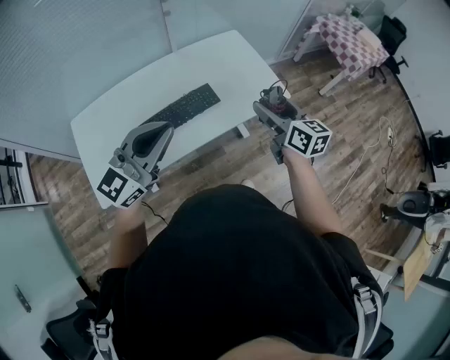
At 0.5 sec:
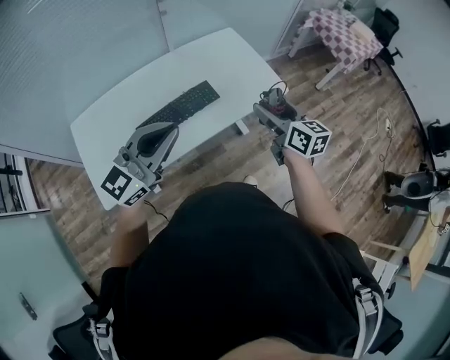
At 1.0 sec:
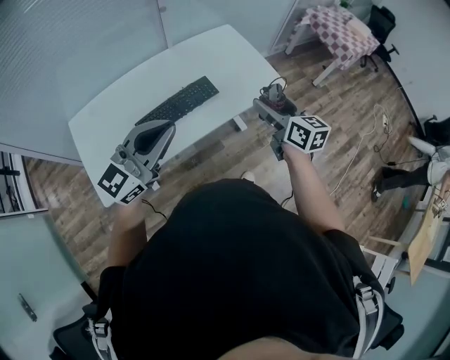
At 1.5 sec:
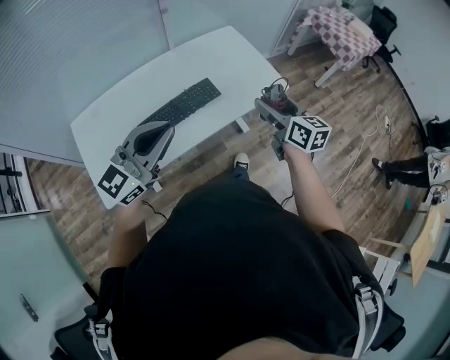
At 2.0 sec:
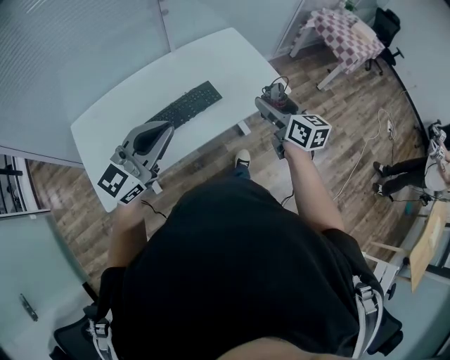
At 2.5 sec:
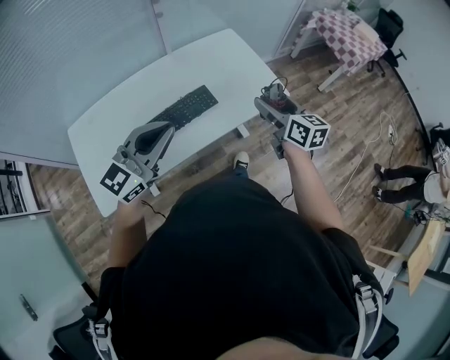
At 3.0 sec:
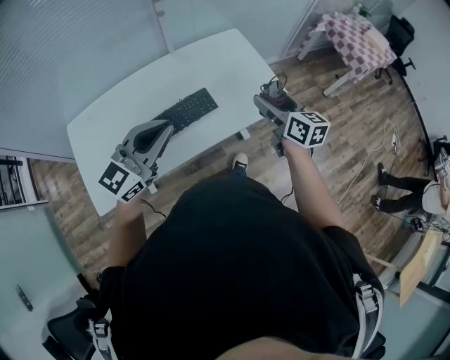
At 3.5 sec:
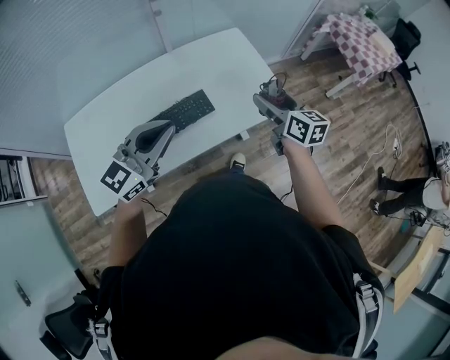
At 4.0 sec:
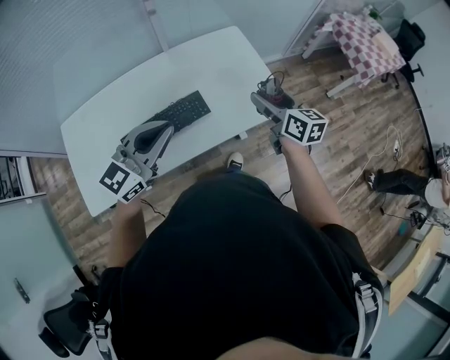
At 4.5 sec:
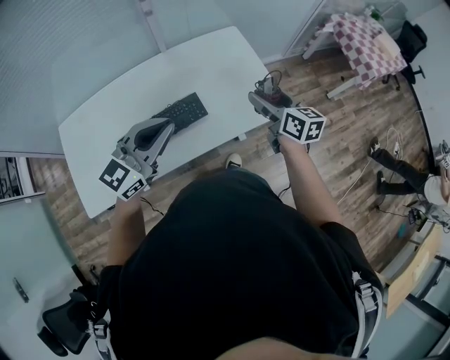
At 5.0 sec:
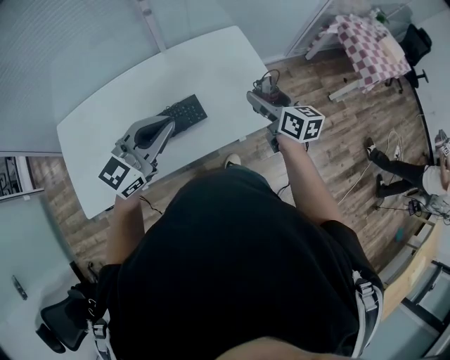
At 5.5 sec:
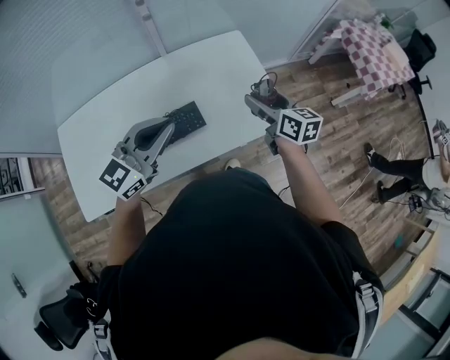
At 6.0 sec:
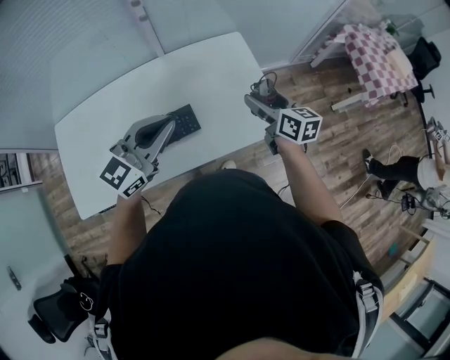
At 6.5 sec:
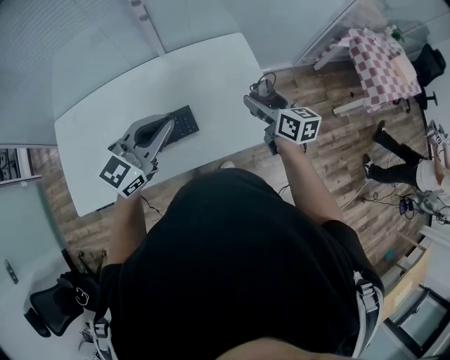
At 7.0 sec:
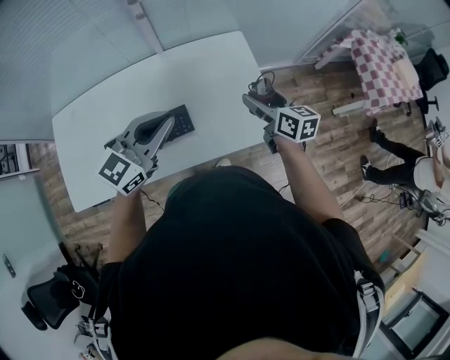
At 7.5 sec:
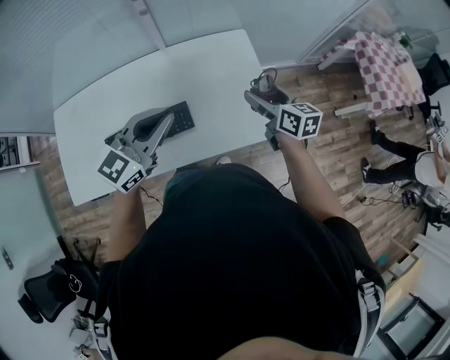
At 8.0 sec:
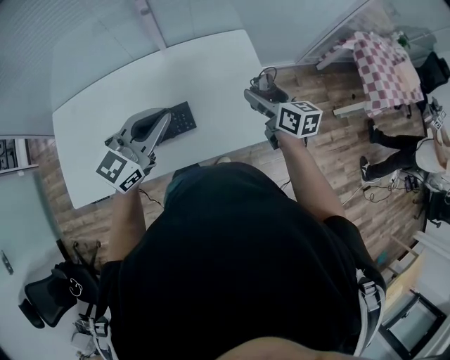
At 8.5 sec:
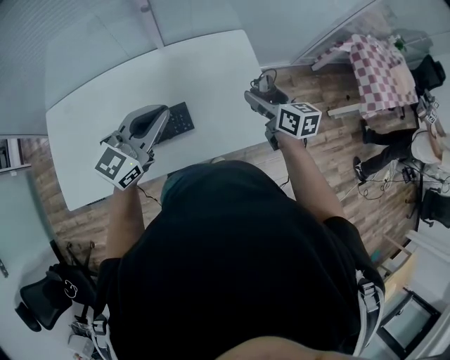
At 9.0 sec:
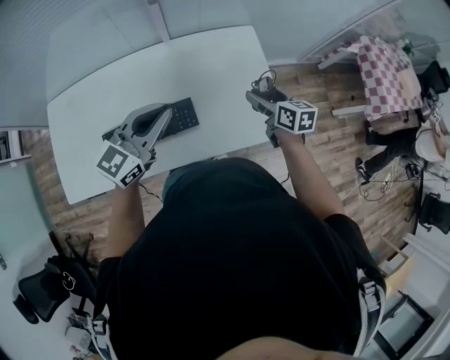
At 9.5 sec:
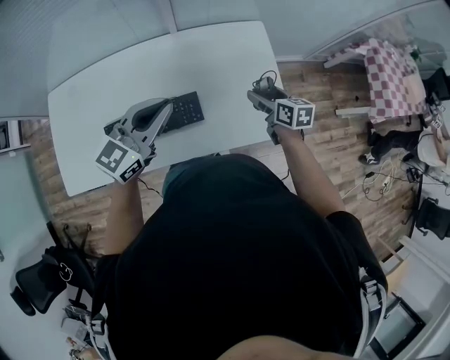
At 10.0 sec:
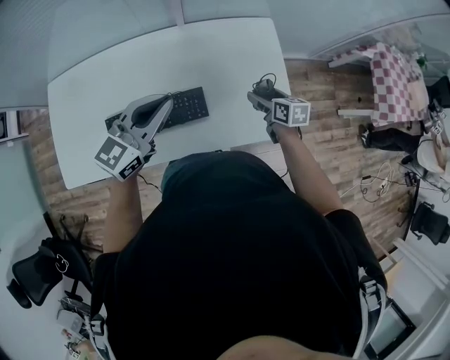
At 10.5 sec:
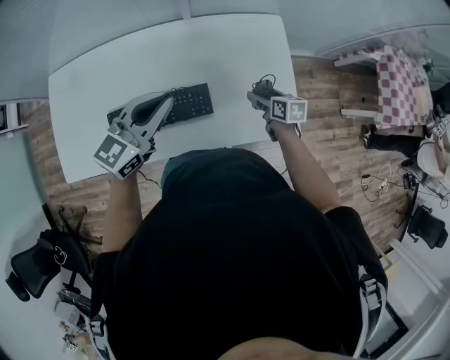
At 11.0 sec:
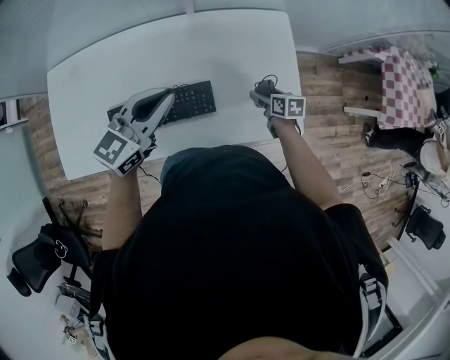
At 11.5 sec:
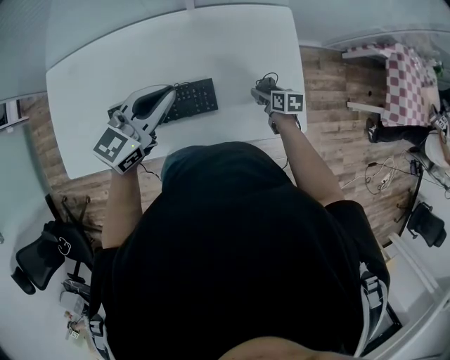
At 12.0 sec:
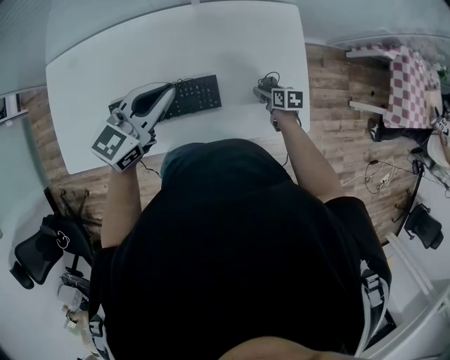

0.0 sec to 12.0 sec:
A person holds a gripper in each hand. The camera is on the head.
0.0 sec to 2.0 sec: The grippers stay close to where they were, moving slightly.
2.0 sec to 4.0 sec: The right gripper is displaced forward by some 20 cm. Meanwhile the left gripper is displaced forward and to the right by some 20 cm.
4.0 sec to 6.0 sec: The left gripper moves forward and to the right, roughly 15 cm; the right gripper is displaced forward by roughly 15 cm.
6.0 sec to 8.0 sec: The grippers stay close to where they were, moving slightly.
8.0 sec to 10.0 sec: The right gripper heads downward, covering roughly 15 cm, and swivels approximately 20 degrees. The left gripper is displaced to the left and downward by approximately 10 cm.
10.0 sec to 12.0 sec: The left gripper travels forward by about 5 cm; the right gripper shifts some 15 cm downward.

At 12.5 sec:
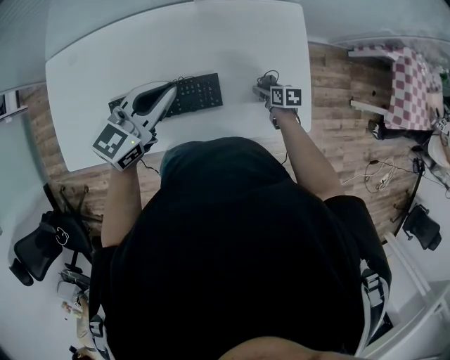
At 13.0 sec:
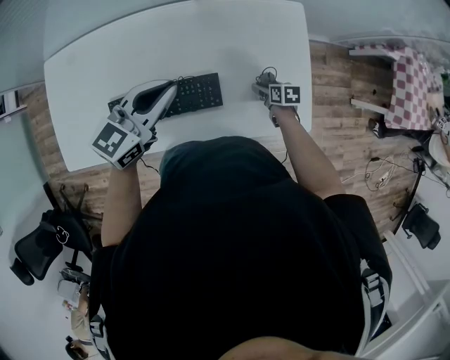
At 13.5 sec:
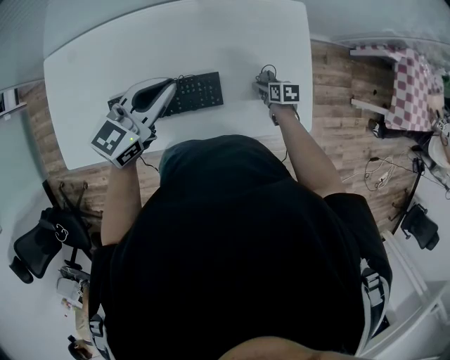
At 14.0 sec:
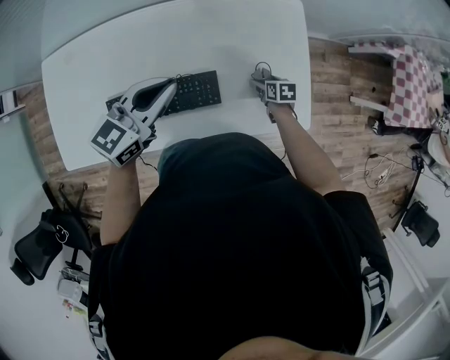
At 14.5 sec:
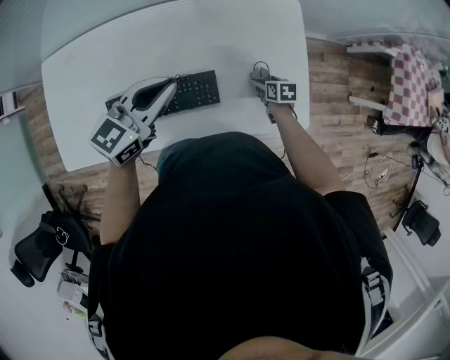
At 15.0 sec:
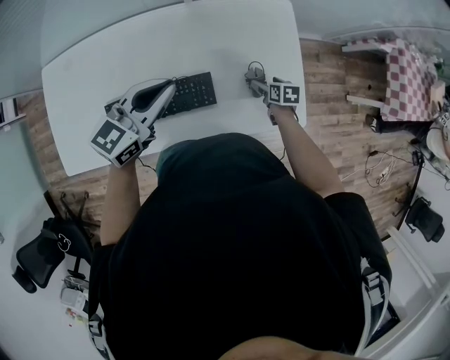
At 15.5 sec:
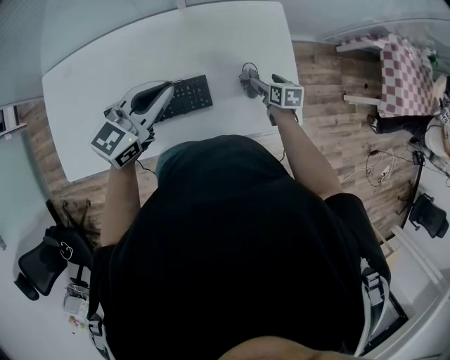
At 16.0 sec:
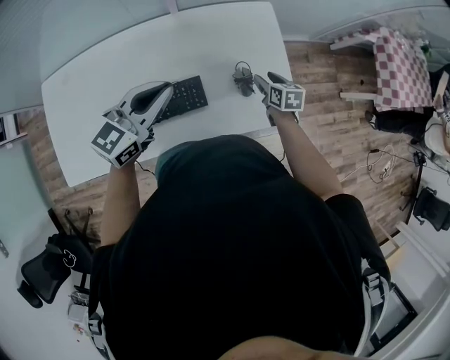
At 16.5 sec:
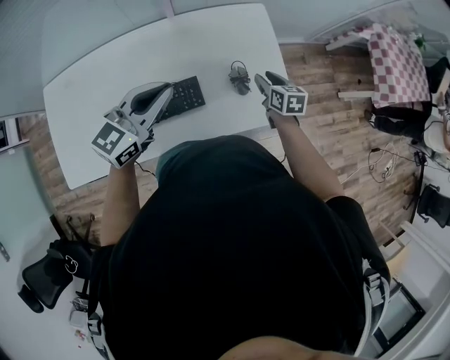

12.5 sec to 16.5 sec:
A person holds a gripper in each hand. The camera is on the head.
12.5 sec to 14.5 sec: There are only small adjustments of the grippers.
14.5 sec to 16.5 sec: The left gripper moves backward, to the right and upward, approximately 10 cm; the right gripper heads upward, covering some 15 cm, changes its angle by approximately 20 degrees, and closes up.

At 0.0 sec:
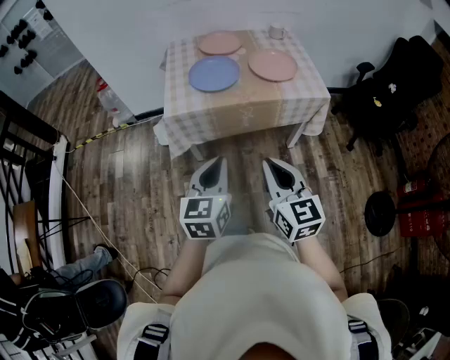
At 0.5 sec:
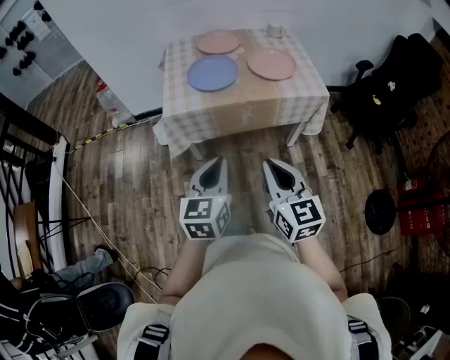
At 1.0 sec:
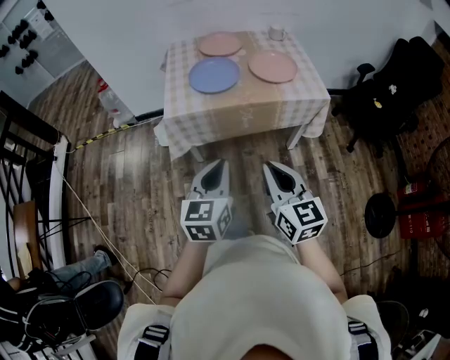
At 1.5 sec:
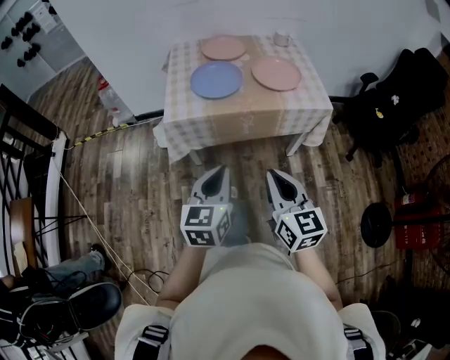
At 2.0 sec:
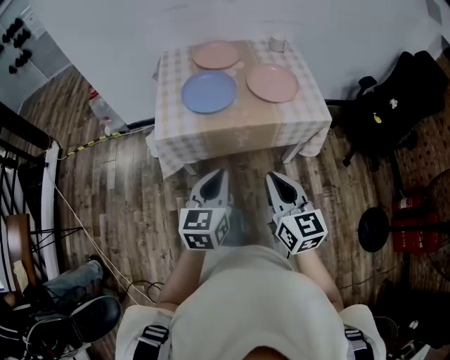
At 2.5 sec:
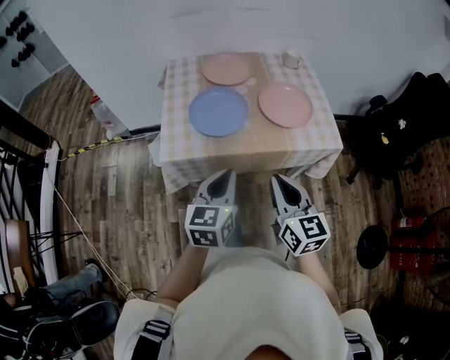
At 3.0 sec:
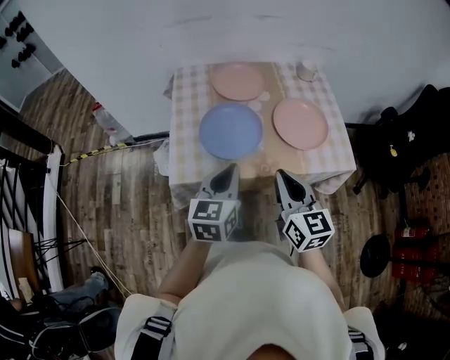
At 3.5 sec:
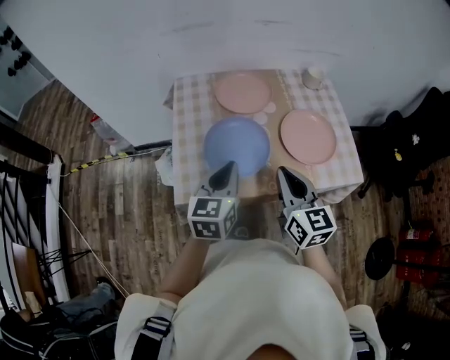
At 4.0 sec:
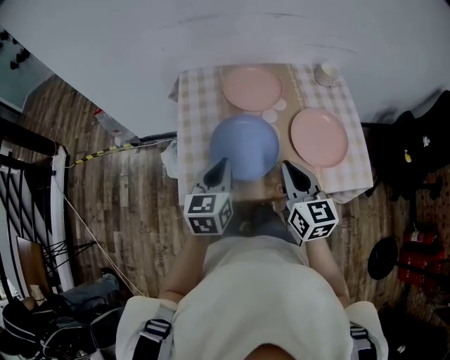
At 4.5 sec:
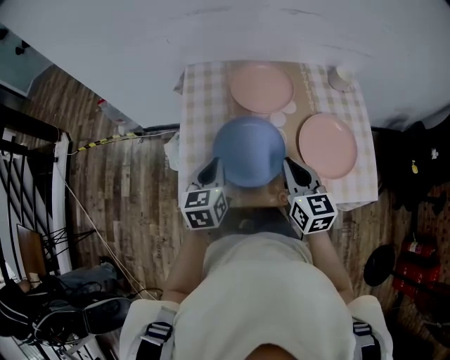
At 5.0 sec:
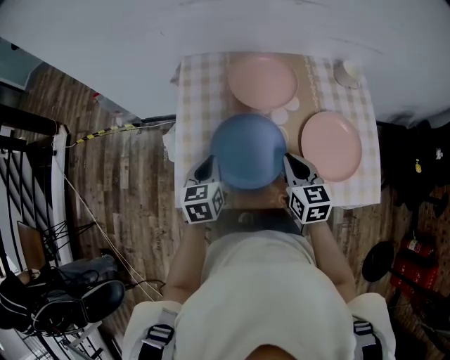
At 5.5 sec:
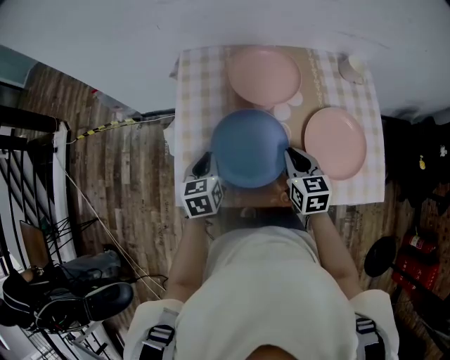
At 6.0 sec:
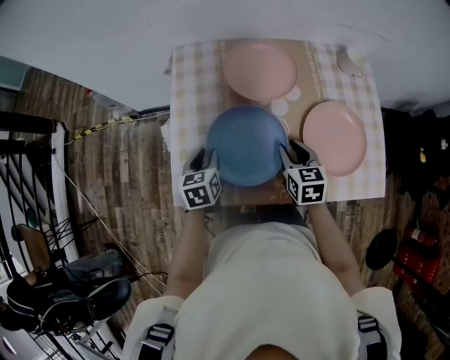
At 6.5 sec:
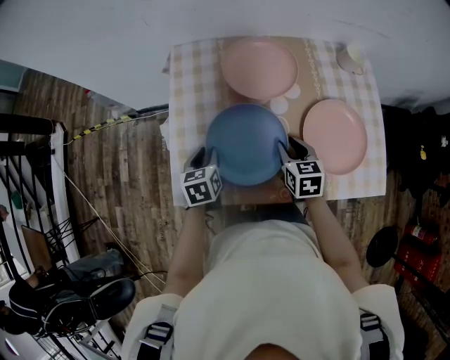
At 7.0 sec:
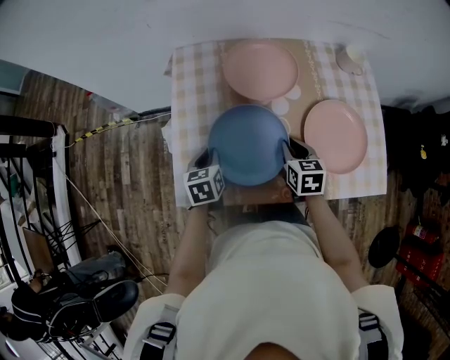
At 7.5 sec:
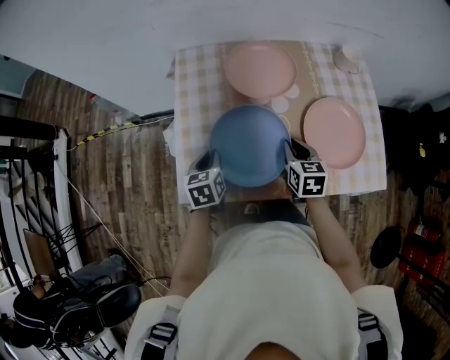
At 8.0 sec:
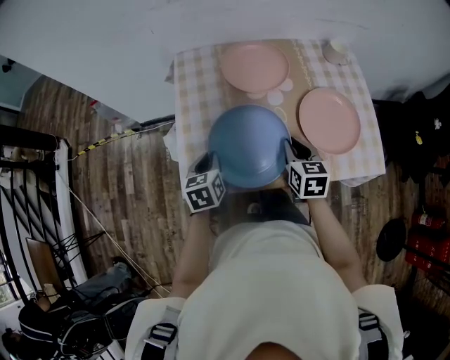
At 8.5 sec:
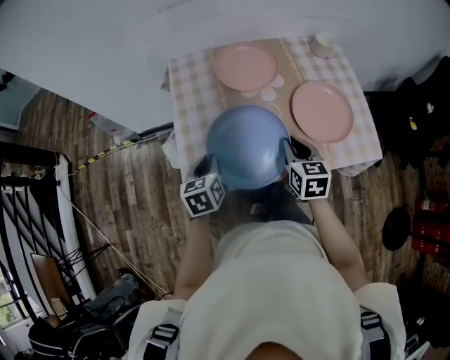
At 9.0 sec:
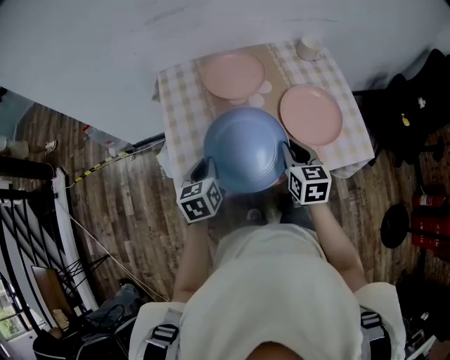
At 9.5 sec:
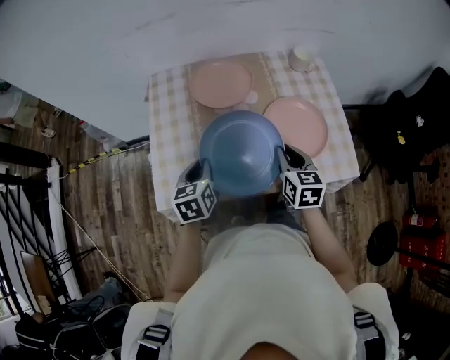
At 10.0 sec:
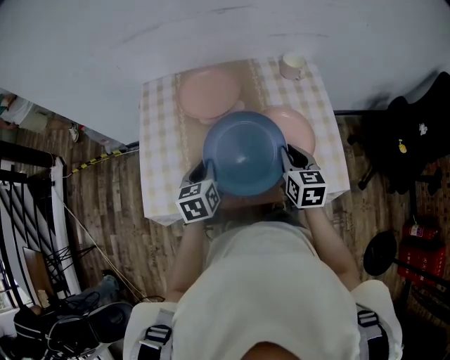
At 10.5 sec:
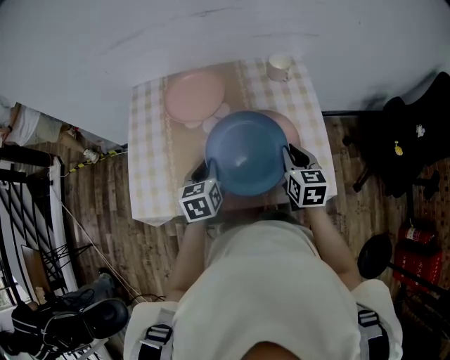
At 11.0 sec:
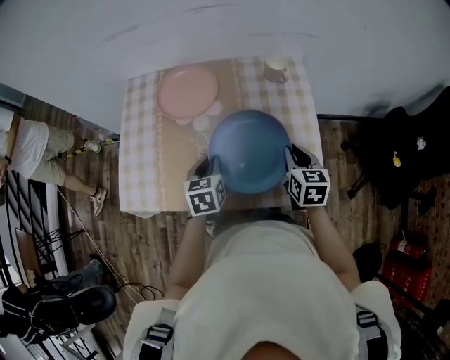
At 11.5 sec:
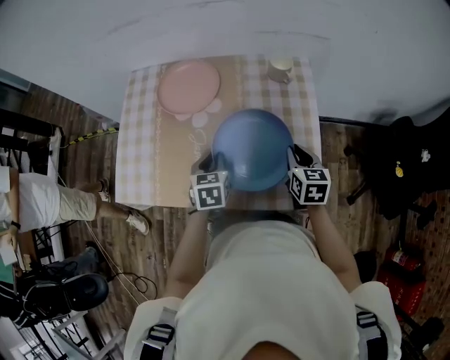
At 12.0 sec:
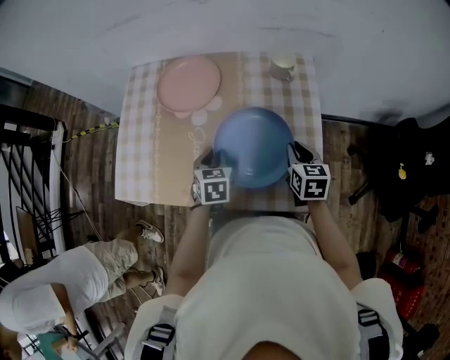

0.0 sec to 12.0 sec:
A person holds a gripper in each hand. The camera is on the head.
0.0 sec to 2.0 sec: Both grippers travel together forward, approximately 10 cm.
2.0 sec to 4.0 sec: The two grippers go roughly 35 cm forward.
4.0 sec to 6.0 sec: The two grippers go roughly 20 cm downward and forward. The right gripper rotates some 20 degrees, and opens. The left gripper turns by roughly 20 degrees, and opens its fingers.
6.0 sec to 8.0 sec: The left gripper changes place by approximately 5 cm. The right gripper ends up roughly 5 cm from where it was.
8.0 sec to 10.0 sec: Both grippers travel together to the right, approximately 15 cm.
10.0 sec to 12.0 sec: Both grippers move to the right and downward, roughly 15 cm.
